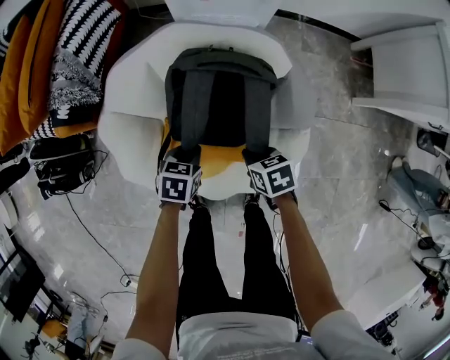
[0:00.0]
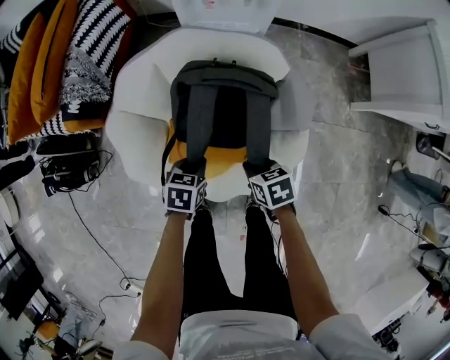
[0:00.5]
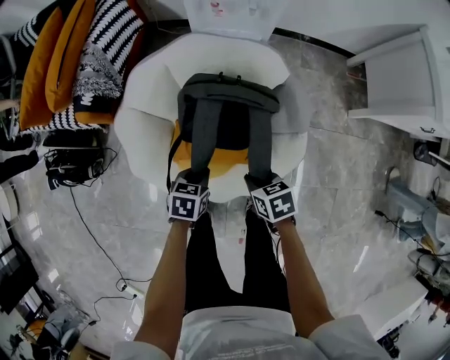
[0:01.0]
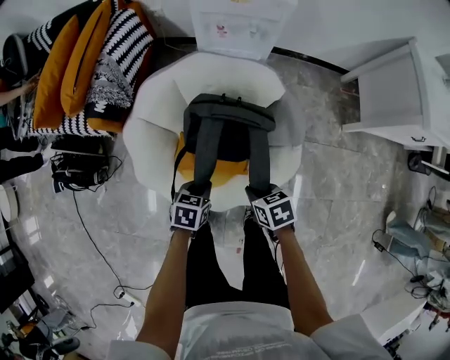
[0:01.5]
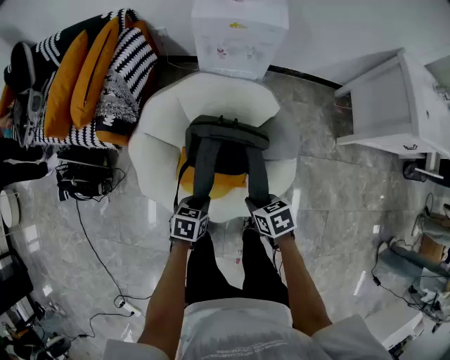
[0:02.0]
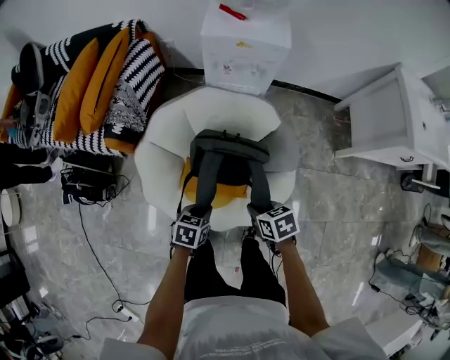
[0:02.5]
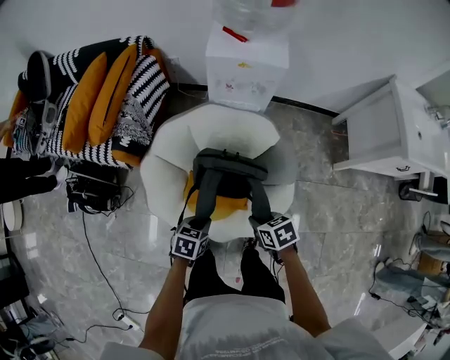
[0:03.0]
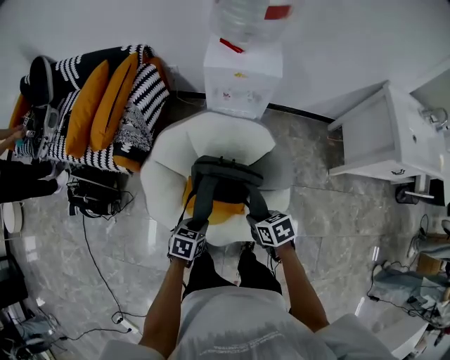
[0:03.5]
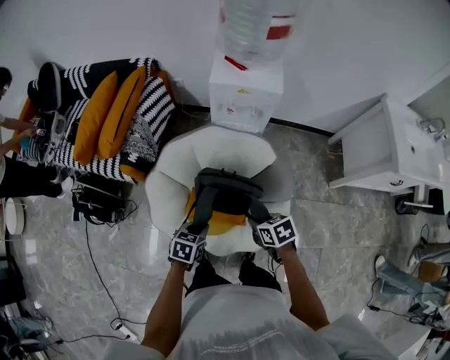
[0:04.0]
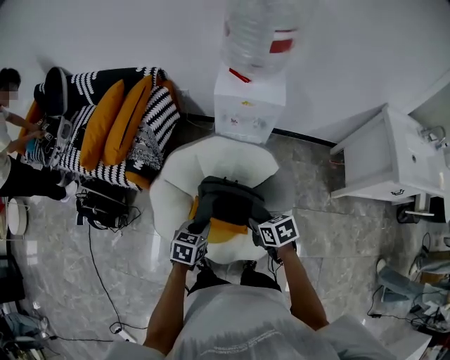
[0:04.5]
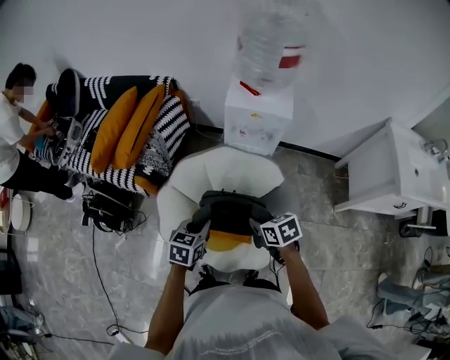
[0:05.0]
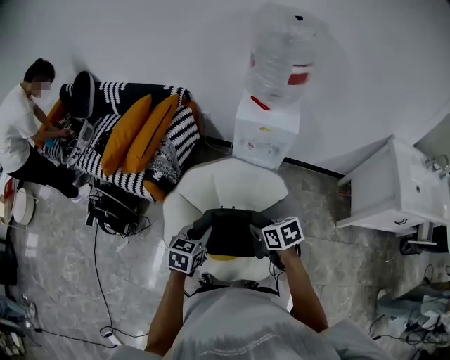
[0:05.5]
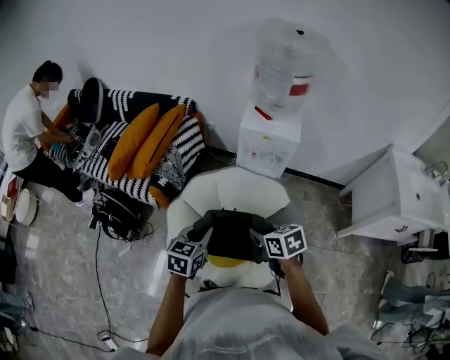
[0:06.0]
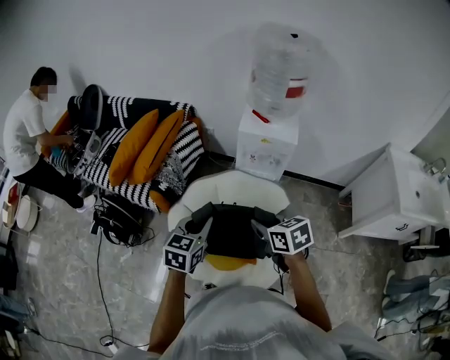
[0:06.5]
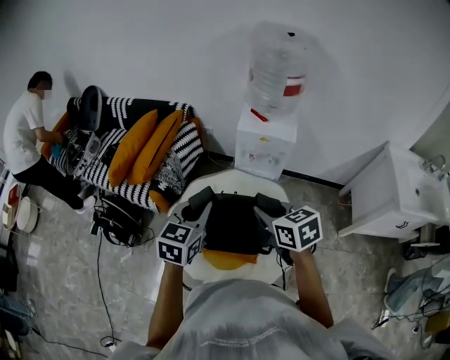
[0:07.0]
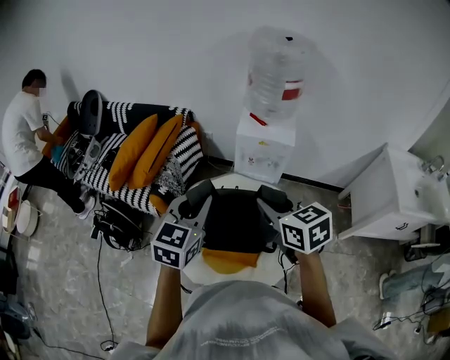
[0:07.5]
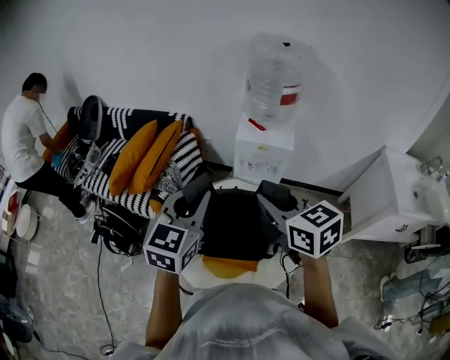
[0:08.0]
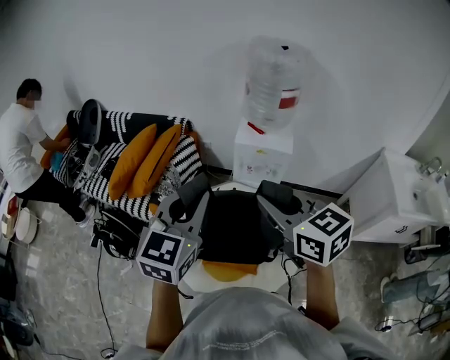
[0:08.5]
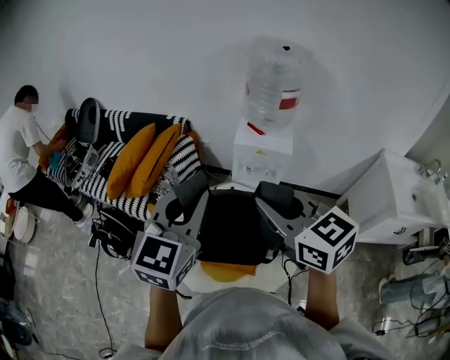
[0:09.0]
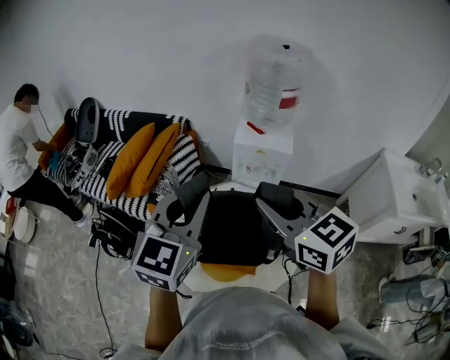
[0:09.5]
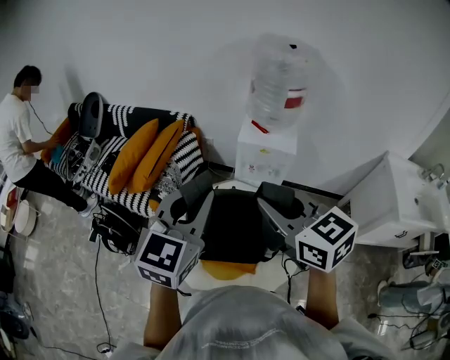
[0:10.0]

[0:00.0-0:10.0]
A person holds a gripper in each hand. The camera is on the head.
0:00.0 to 0:02.0: The left gripper shifts approximately 15 cm backward and upward. Meanwhile the right gripper heads upward and backward, covering approximately 20 cm.
0:02.0 to 0:04.0: The two grippers go roughly 10 cm upward.
0:04.0 to 0:06.0: The left gripper is displaced upward by about 15 cm, and swivels some 30 degrees, while the right gripper is displaced upward and to the left by about 15 cm.
0:06.0 to 0:08.0: Both grippers travel together upward, approximately 25 cm. The right gripper rotates some 30 degrees. Meanwhile the left gripper changes its angle by roughly 30 degrees.
0:08.0 to 0:10.0: The left gripper travels upward by approximately 5 cm.

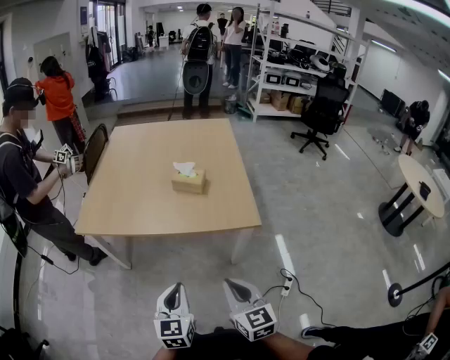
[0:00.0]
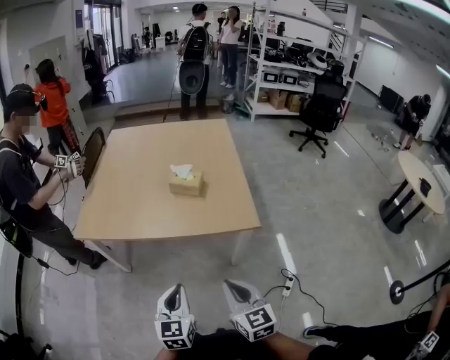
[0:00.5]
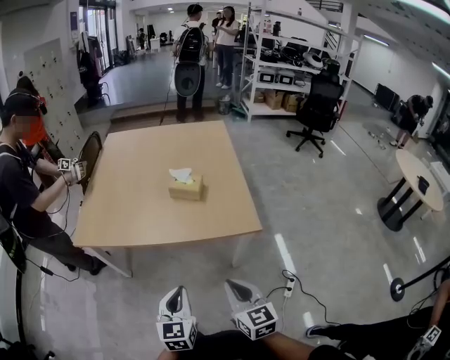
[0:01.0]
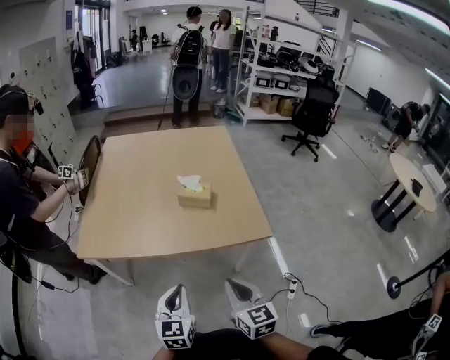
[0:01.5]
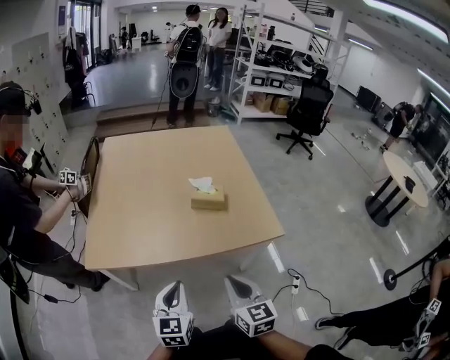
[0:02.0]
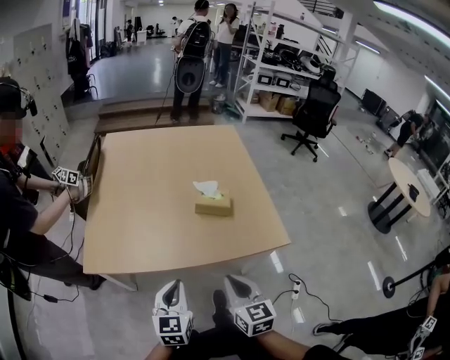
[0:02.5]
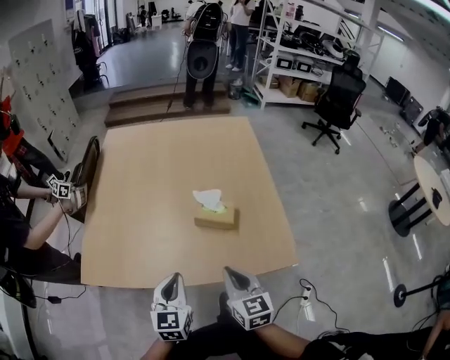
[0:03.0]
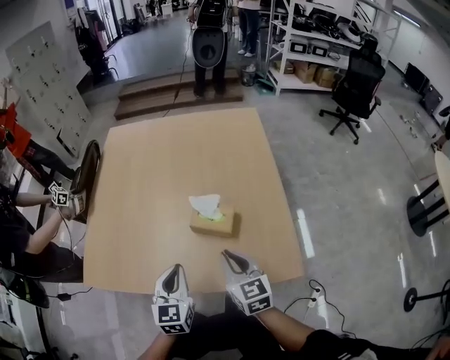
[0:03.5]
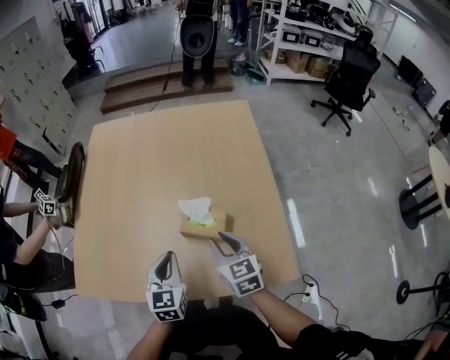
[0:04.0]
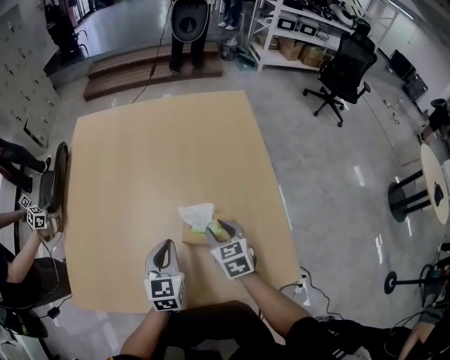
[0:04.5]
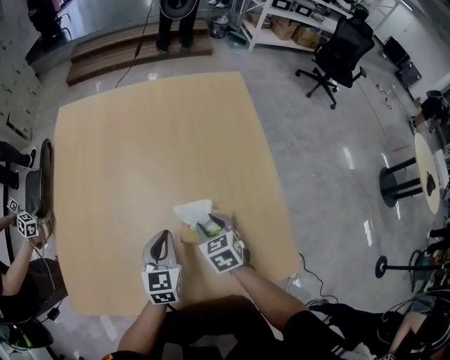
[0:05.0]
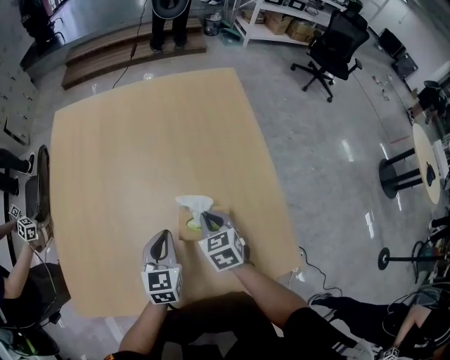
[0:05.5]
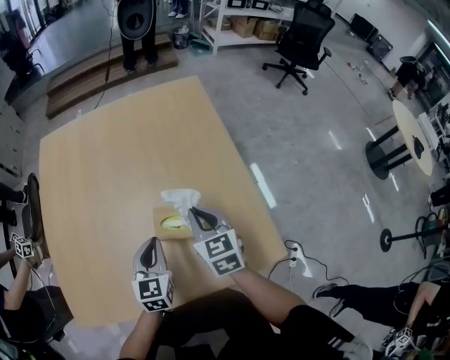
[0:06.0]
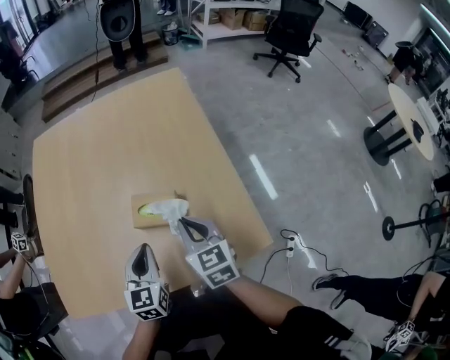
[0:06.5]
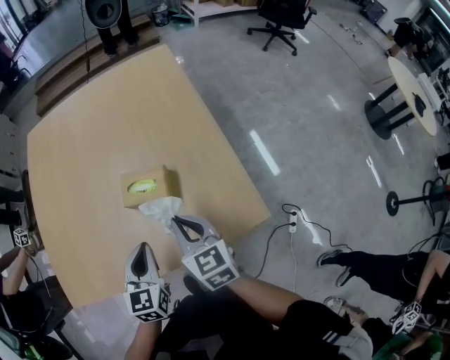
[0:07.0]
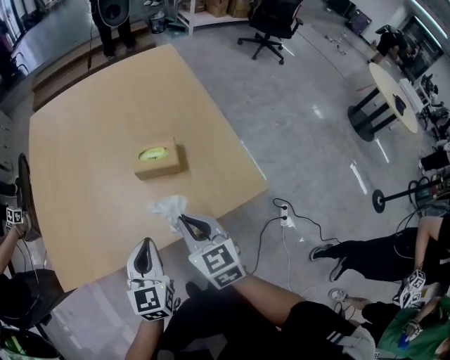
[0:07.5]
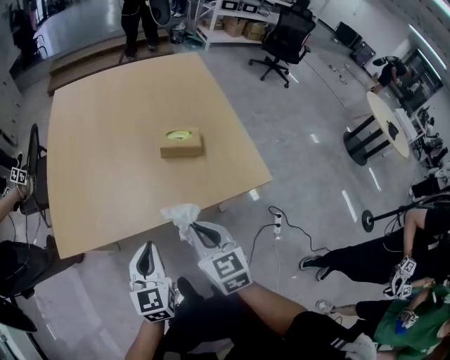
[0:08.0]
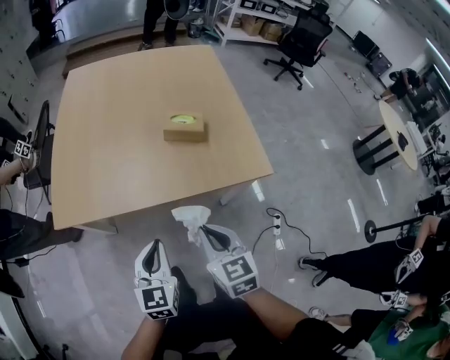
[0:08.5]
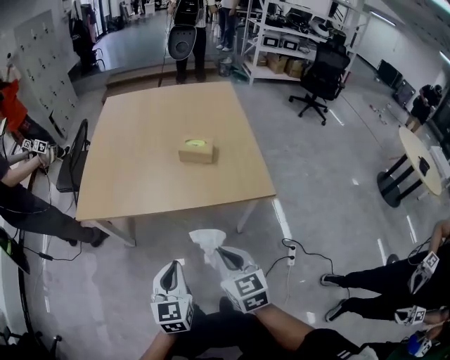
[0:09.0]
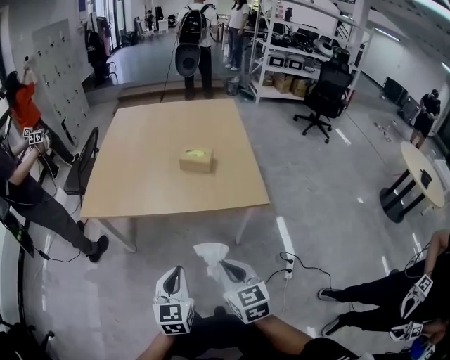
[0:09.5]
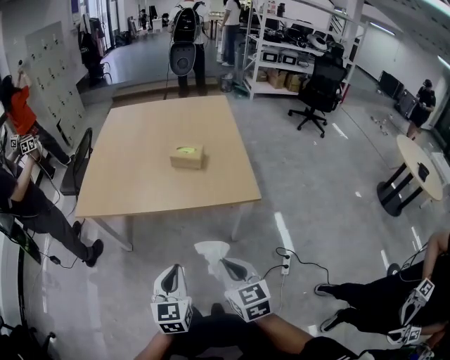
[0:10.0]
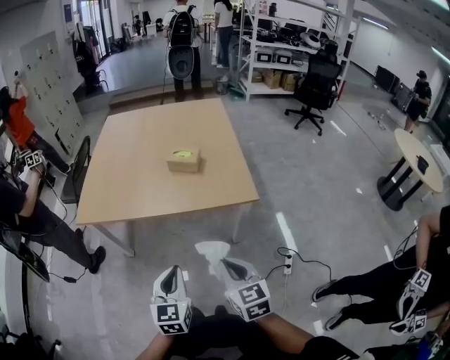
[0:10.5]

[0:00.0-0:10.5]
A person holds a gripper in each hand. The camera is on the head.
0:00.0 to 0:02.0: Both grippers travel together to the left and forward, about 20 cm.
0:02.0 to 0:04.0: The grippers both shift forward by approximately 30 cm.
0:04.0 to 0:06.5: The left gripper heads to the right, covering roughly 5 cm, and reaches roughly 10 cm forward, then returns, while the right gripper travels downward and back again, roughly 10 cm each way.
0:06.5 to 0:08.5: Both grippers move backward, some 30 cm.
0:08.5 to 0:10.5: The two grippers go roughly 20 cm backward and to the right.

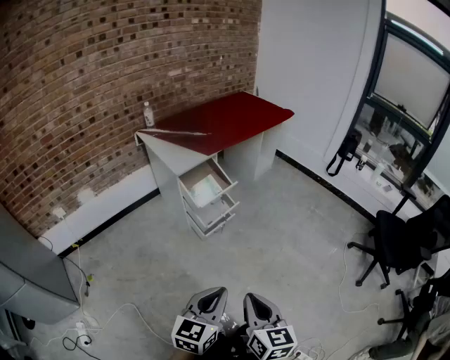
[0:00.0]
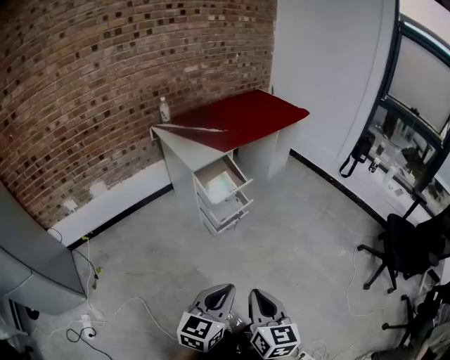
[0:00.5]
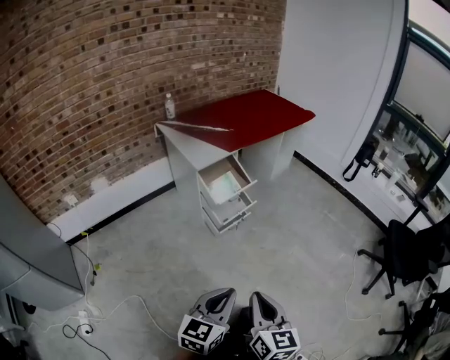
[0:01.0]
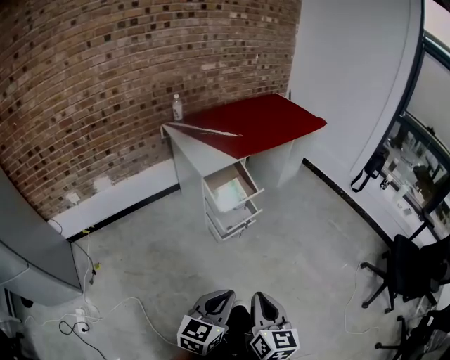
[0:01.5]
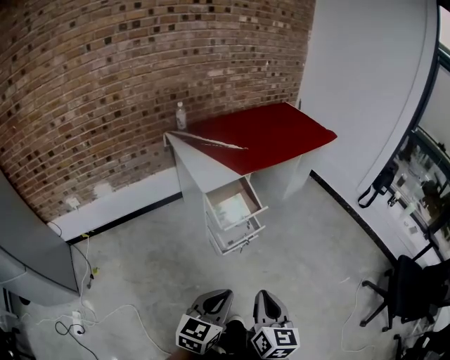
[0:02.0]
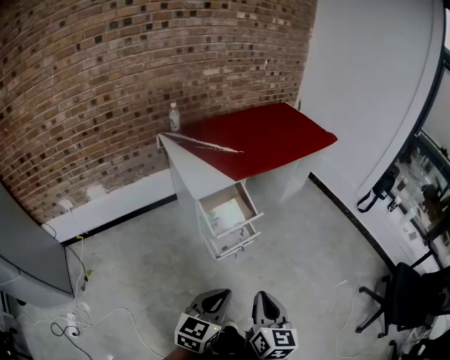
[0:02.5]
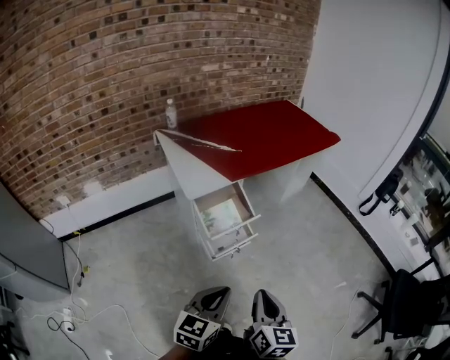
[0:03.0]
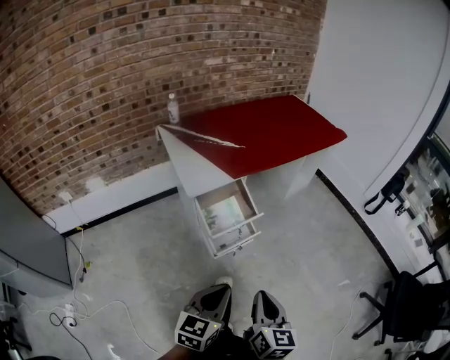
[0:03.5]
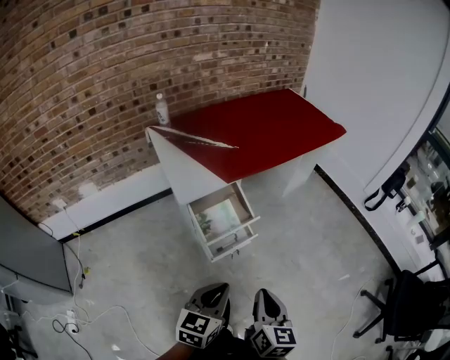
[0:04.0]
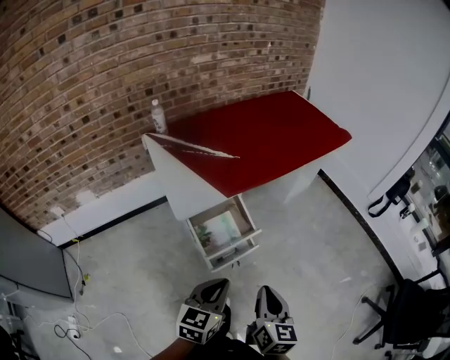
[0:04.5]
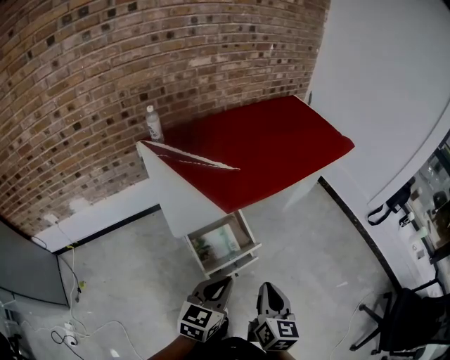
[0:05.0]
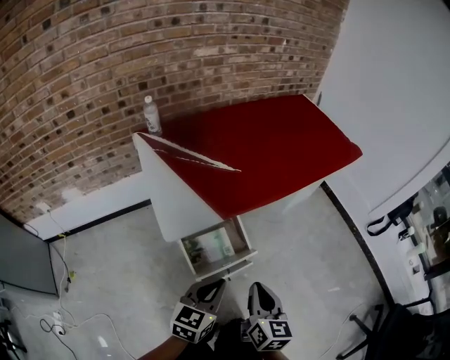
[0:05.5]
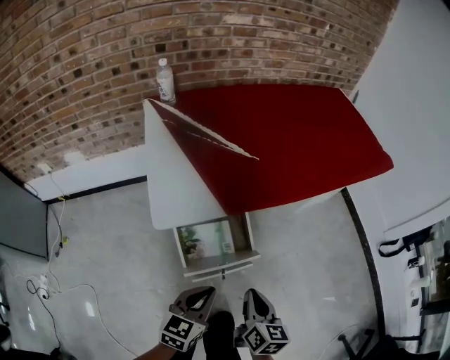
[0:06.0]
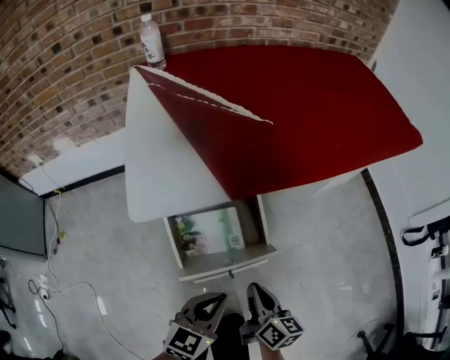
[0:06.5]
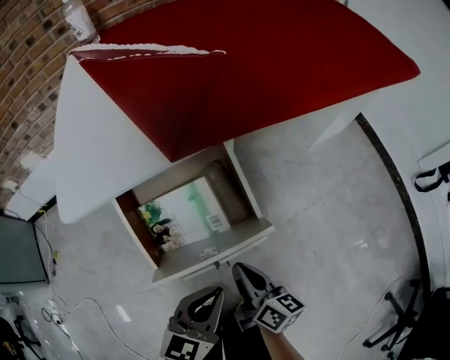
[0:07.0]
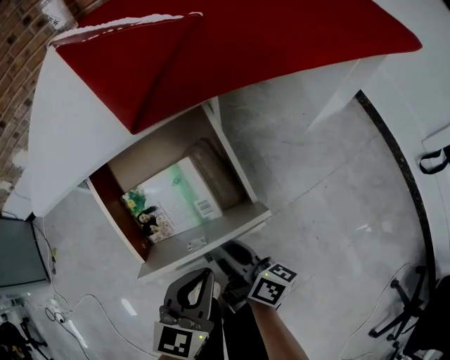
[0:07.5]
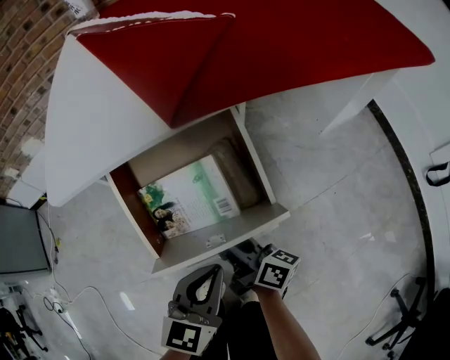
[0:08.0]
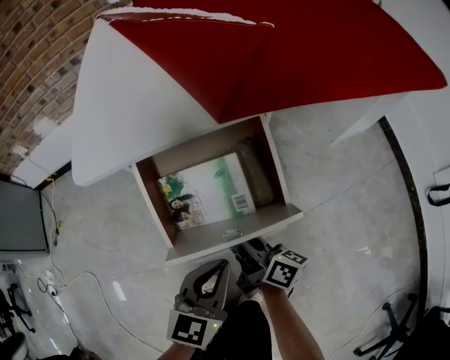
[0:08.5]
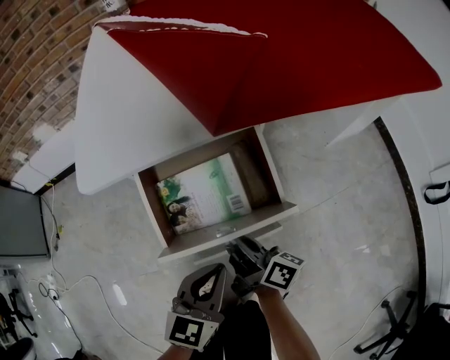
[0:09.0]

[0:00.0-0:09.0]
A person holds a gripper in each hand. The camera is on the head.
0:00.0 to 0:02.0: The grippers both shift forward by approximately 15 cm.
0:02.0 to 0:04.5: Both grippers travel together forward, approximately 25 cm.
0:04.5 to 0:07.0: Both grippers move downward and forward, some 40 cm. The right gripper swivels approximately 40 degrees.
0:07.0 to 0:09.0: The right gripper is displaced forward and to the left by roughly 10 cm, turns by approximately 20 degrees, and opens, then closes once more.
